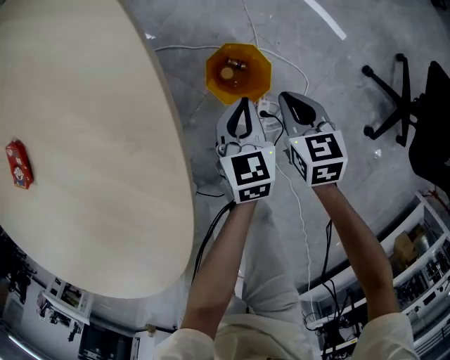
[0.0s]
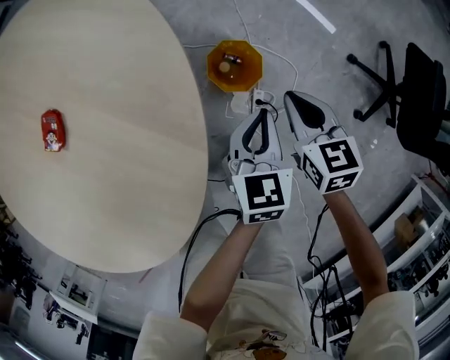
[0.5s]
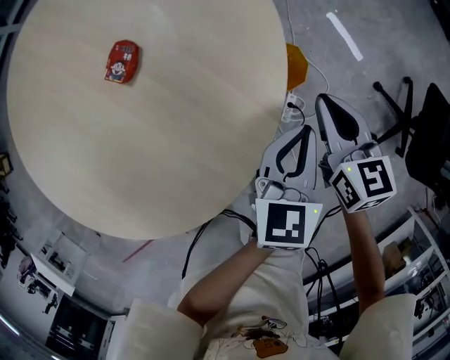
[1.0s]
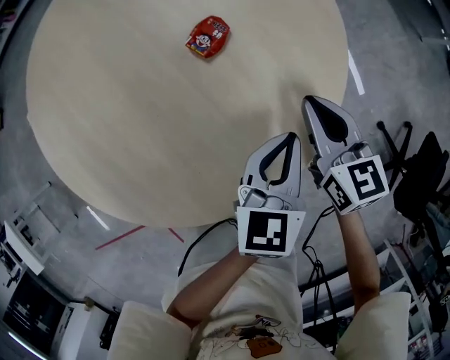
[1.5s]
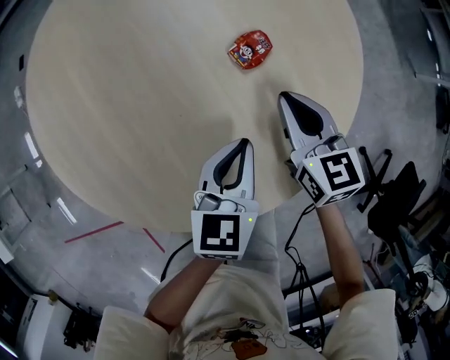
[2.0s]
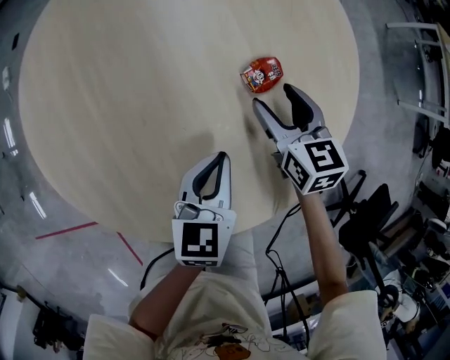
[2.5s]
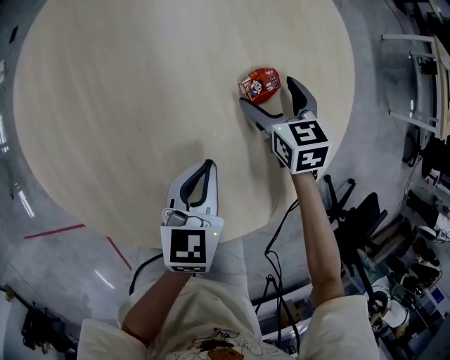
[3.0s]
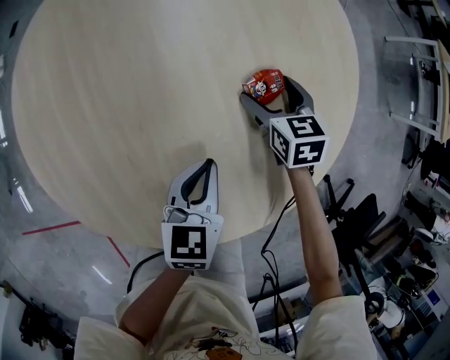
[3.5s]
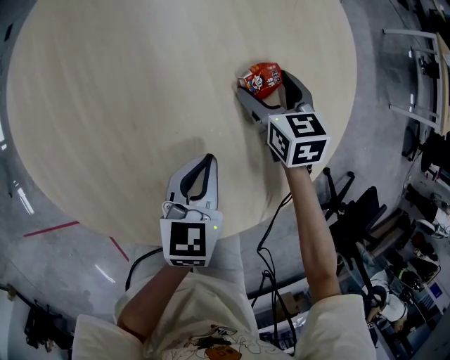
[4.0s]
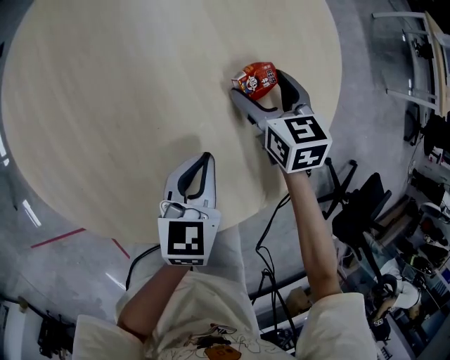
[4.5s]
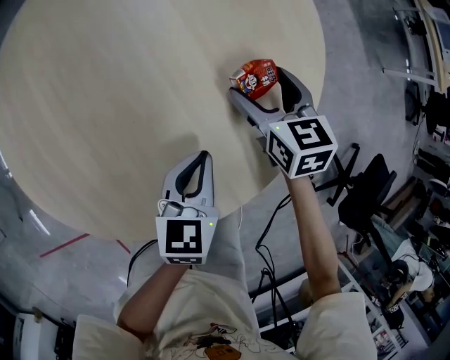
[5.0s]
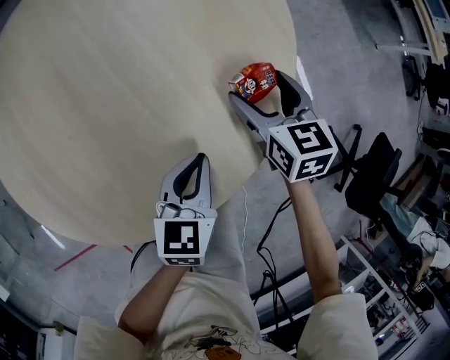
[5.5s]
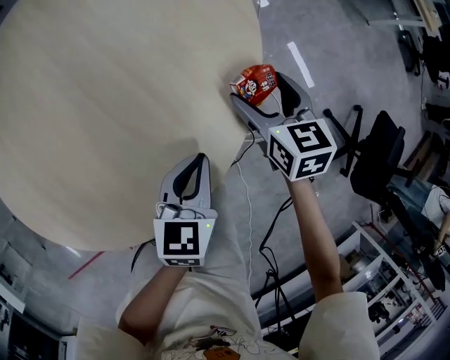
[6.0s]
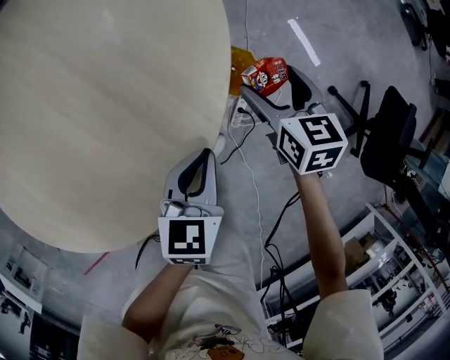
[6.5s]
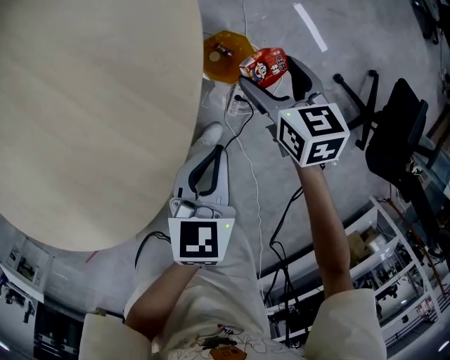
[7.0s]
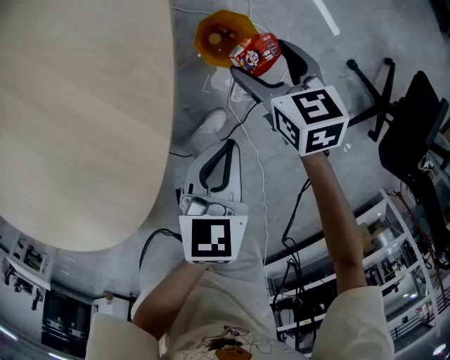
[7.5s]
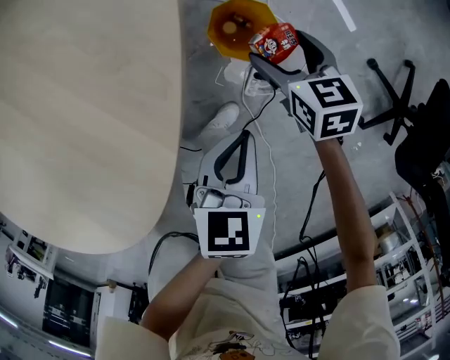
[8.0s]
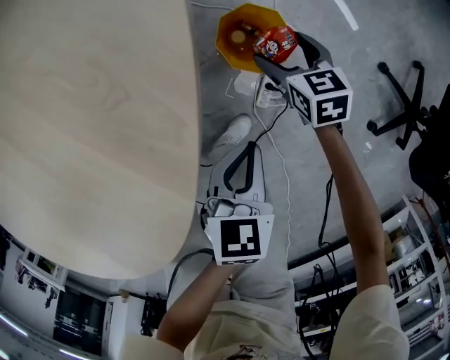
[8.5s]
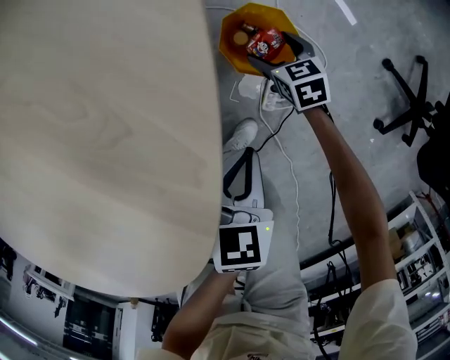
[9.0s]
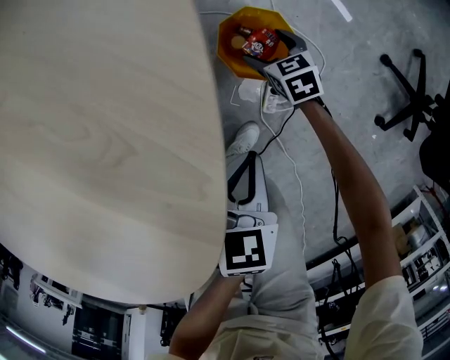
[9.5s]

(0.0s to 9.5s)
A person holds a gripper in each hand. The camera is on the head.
0.0s - 2.0s: Both grippers are carried roughly 40 cm. The right gripper turns by about 40 degrees; the left gripper turns by about 30 degrees.
2.0s - 4.0s: The right gripper goes about 15 cm forward and downward, and opens. The left gripper is displaced to the left by roughly 5 cm.
4.0s - 5.5s: The two grippers go roughly 20 cm to the right and backward.
5.5s - 7.5s: The right gripper shifts approximately 30 cm to the right and downward. Meanwhile the left gripper travels to the right by approximately 25 cm.
7.5s - 9.5s: The left gripper heads downward, covering roughly 15 cm, while the right gripper is displaced downward by roughly 30 cm.

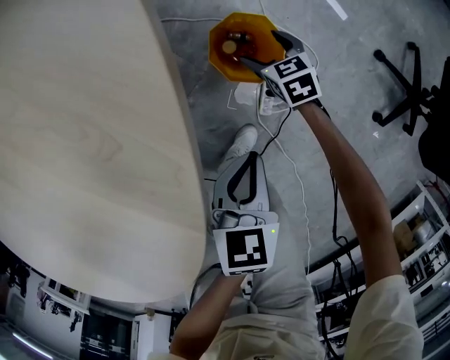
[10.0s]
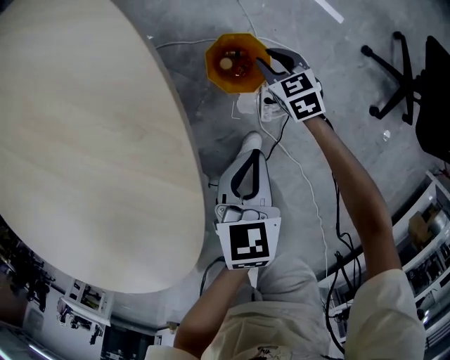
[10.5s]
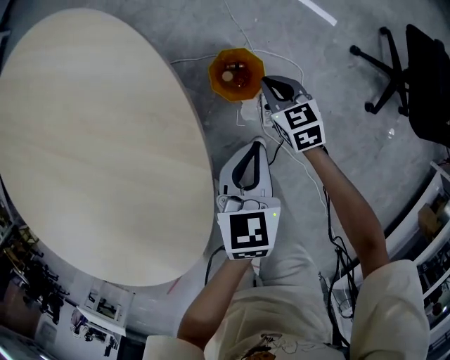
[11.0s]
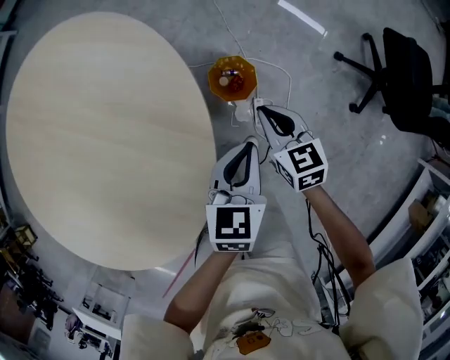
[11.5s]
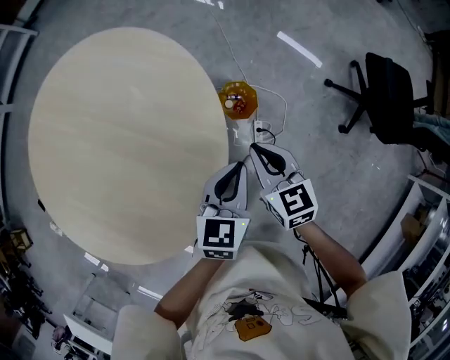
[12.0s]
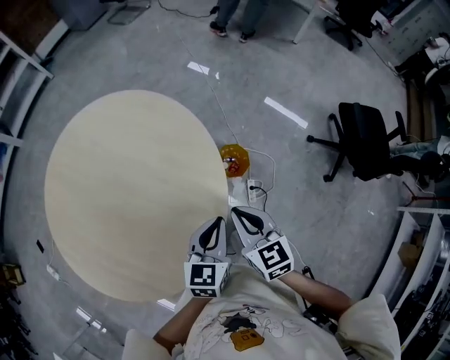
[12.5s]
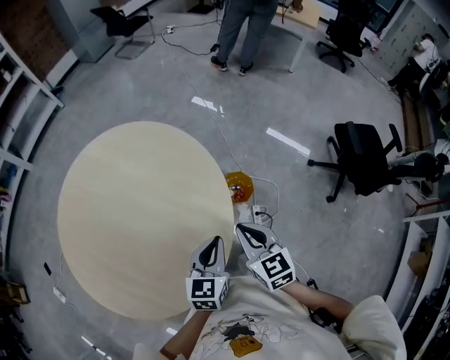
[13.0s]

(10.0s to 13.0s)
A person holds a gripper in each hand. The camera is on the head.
10.0s - 11.5s: Both grippers travel together upward, roughly 30 cm. The right gripper changes its angle by about 20 degrees, and closes its fingers.
11.5s - 13.0s: The left gripper goes some 30 cm upward, to the left and backward, while the right gripper is displaced upward, backward and to the left by approximately 35 cm.

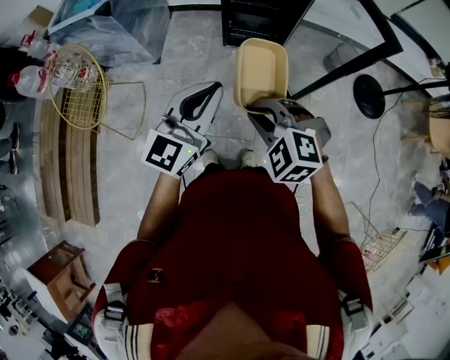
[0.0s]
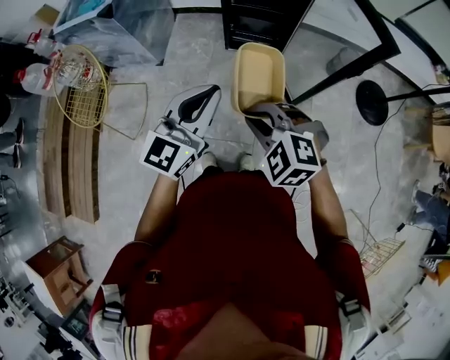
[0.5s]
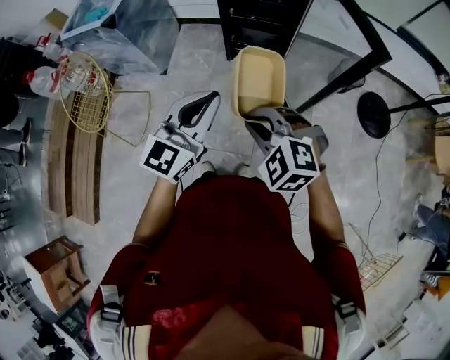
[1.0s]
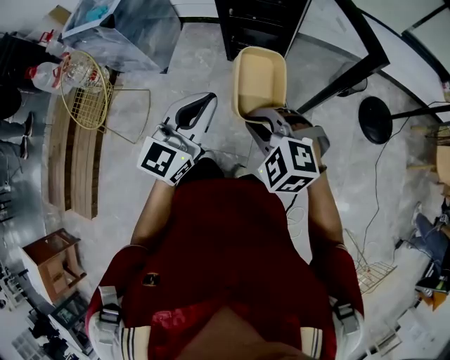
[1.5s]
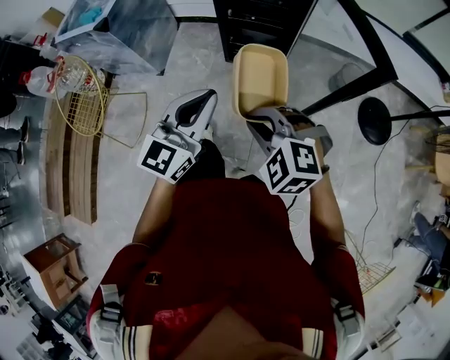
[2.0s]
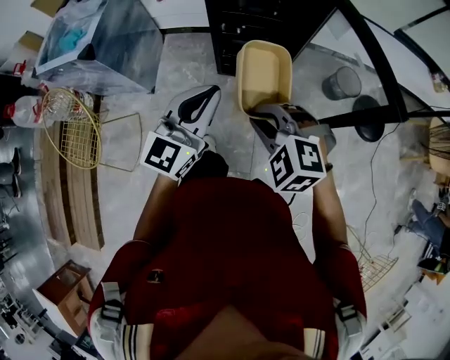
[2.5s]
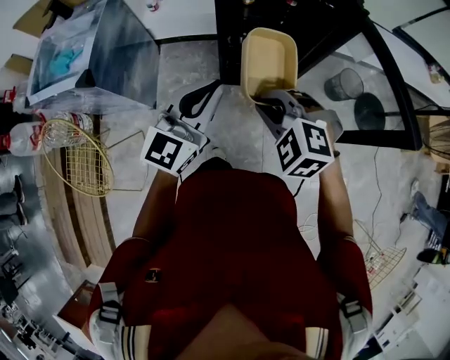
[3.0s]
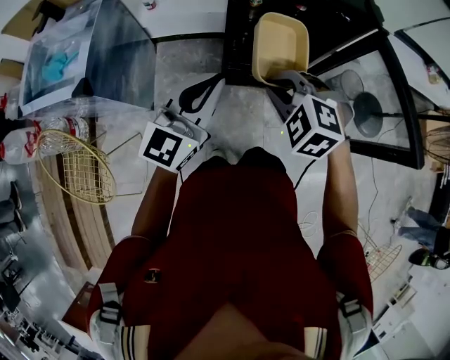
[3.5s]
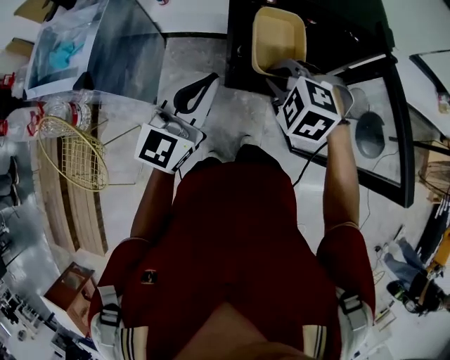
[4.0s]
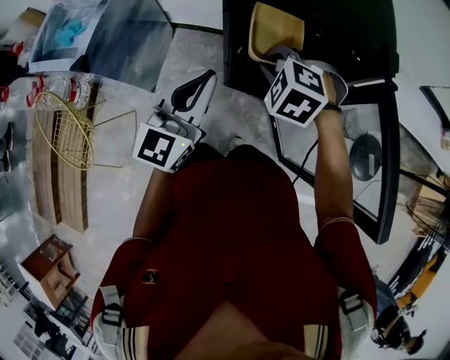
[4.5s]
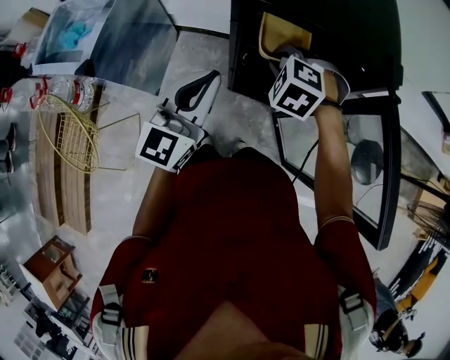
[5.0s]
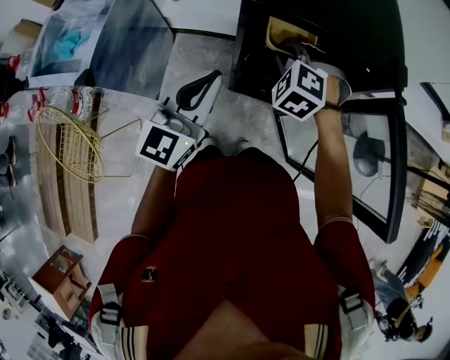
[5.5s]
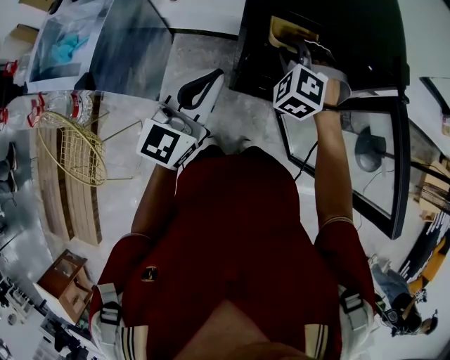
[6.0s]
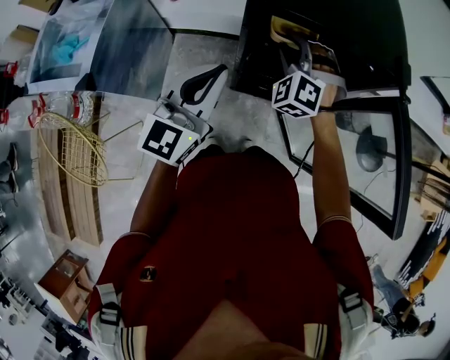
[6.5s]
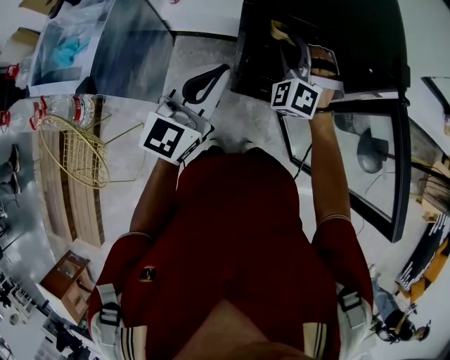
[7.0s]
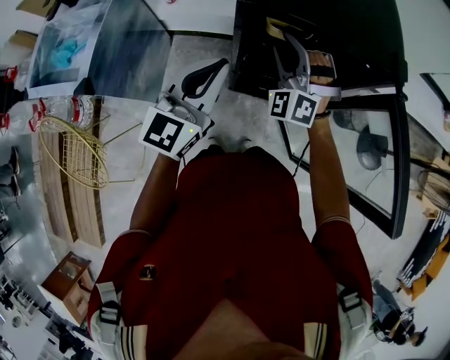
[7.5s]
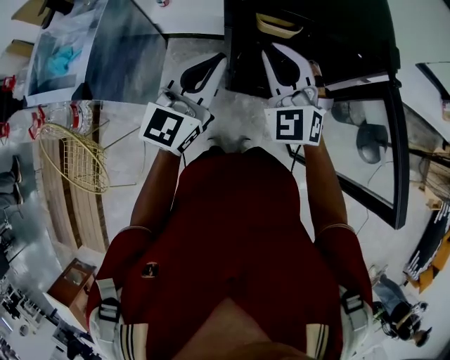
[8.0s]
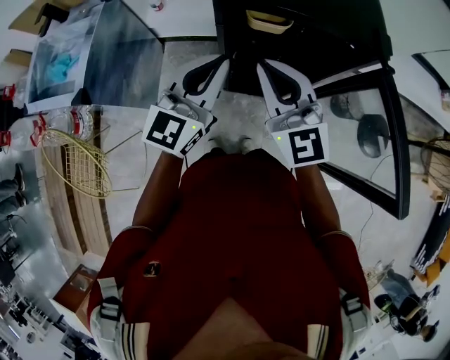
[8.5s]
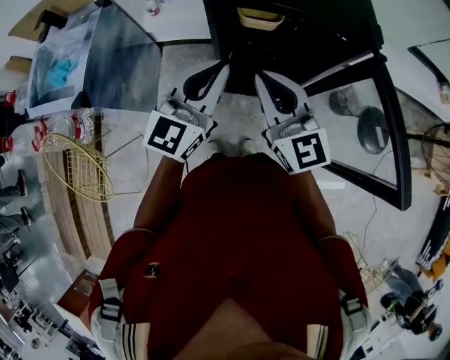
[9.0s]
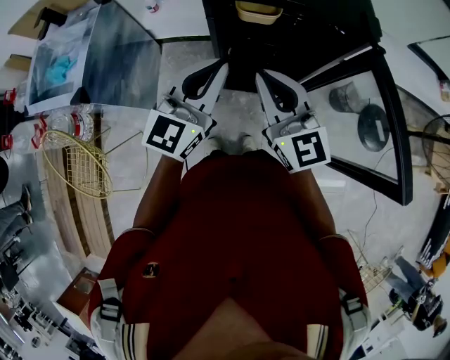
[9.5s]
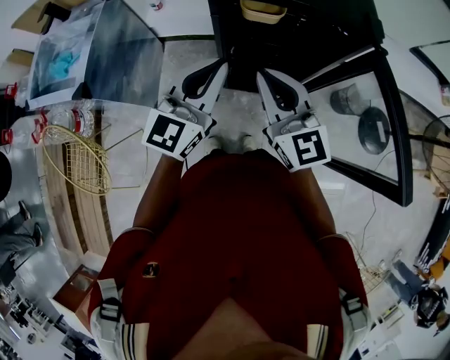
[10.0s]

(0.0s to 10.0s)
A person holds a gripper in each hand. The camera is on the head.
0.0s - 2.0s: The grippers both shift to the right and forward by some 10 cm.
2.0s - 4.0s: Both grippers travel together forward, roughly 40 cm.
4.0s - 6.0s: The left gripper travels forward by about 5 cm. The right gripper is displaced forward by about 15 cm, and swivels some 20 degrees.
6.0s - 8.0s: The right gripper moves upward and backward, approximately 10 cm, and angles its fingers upward, by about 30 degrees.
8.0s - 10.0s: The right gripper heads backward, covering about 10 cm, and twists some 40 degrees clockwise, seen from behind. Meanwhile the left gripper moves backward, roughly 5 cm.

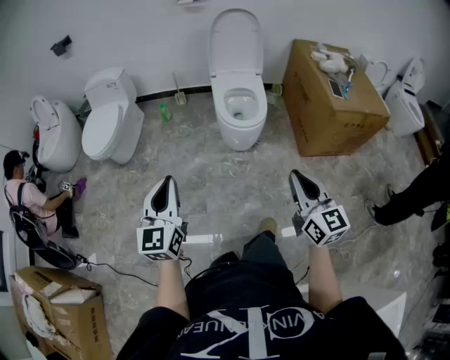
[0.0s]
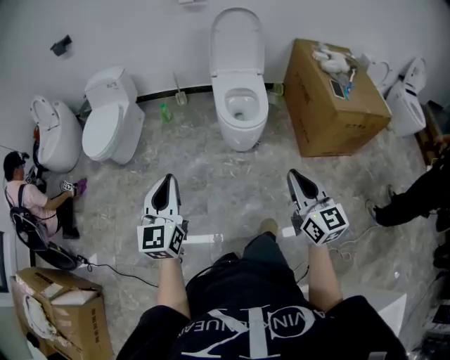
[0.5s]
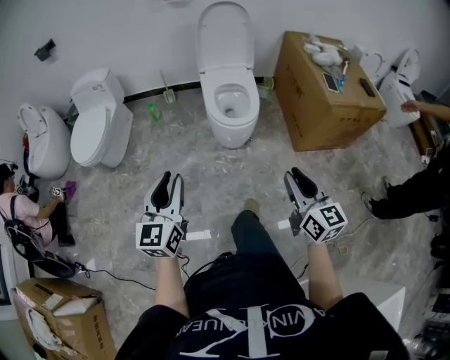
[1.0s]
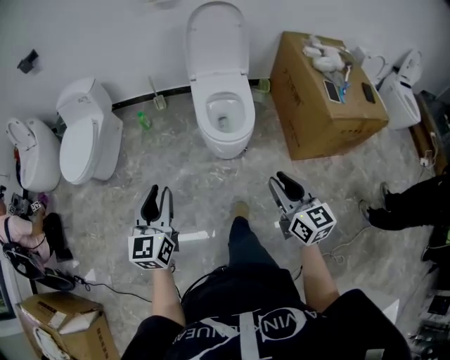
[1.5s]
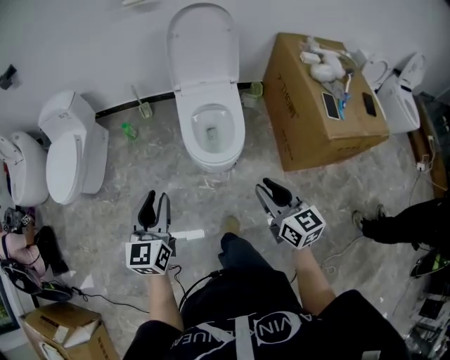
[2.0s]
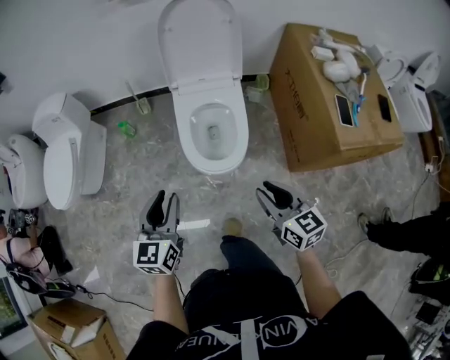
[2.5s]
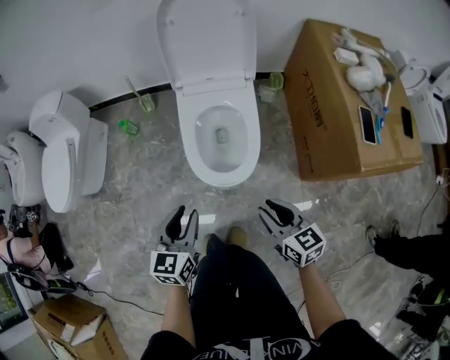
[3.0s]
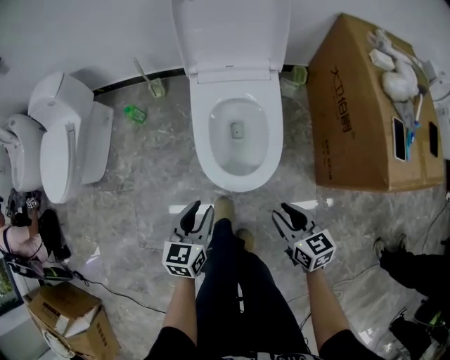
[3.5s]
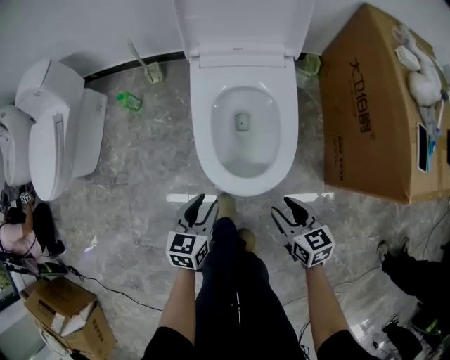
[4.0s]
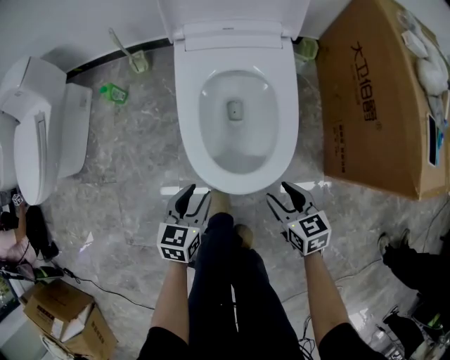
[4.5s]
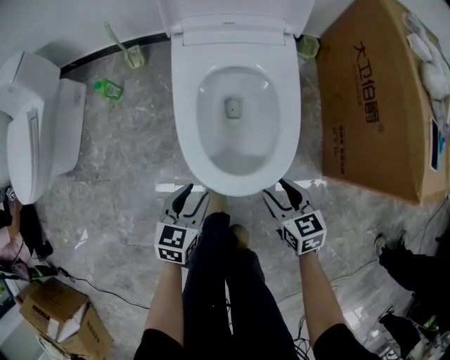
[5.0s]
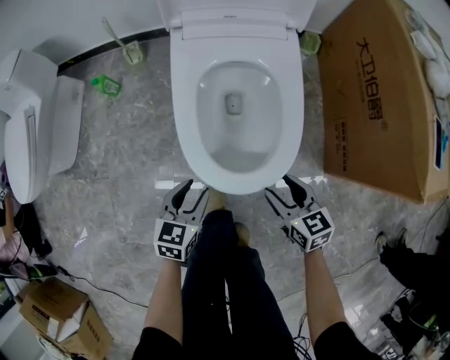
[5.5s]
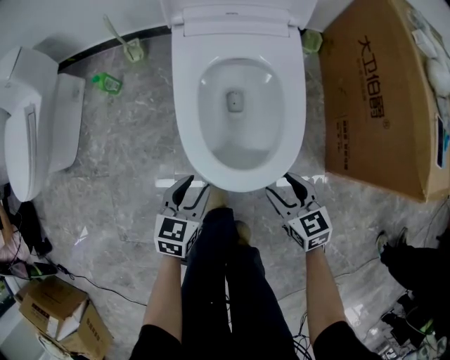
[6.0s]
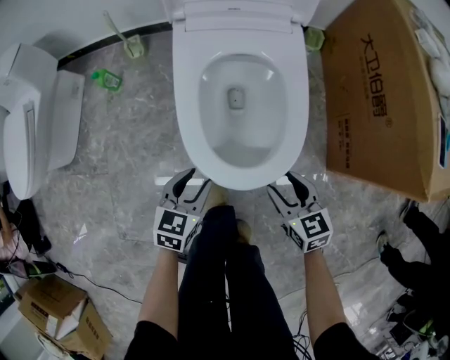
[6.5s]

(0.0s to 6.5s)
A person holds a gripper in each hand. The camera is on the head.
0.0s - 2.0s: The left gripper moves forward and to the right, about 30 cm, and opens; the right gripper heads forward, covering some 30 cm, and opens.
2.0s - 4.5s: Both grippers travel together downward and forward, some 50 cm. The left gripper changes its angle by about 30 degrees, while the right gripper changes its angle by approximately 30 degrees, and opens.
4.5s - 6.5s: The grippers stay close to where they were, moving slightly.
